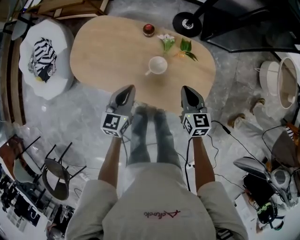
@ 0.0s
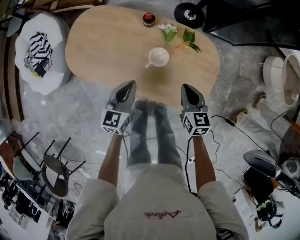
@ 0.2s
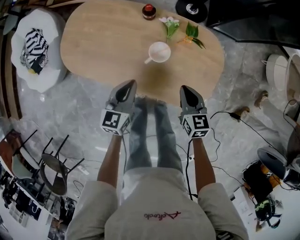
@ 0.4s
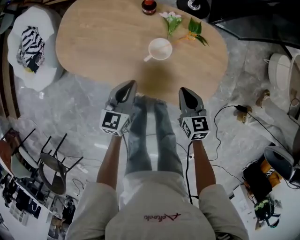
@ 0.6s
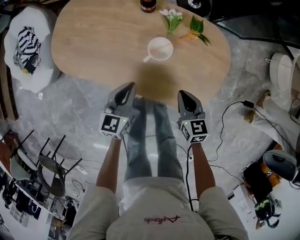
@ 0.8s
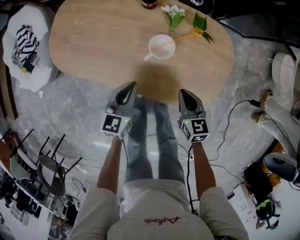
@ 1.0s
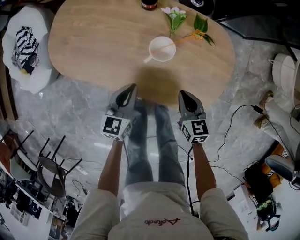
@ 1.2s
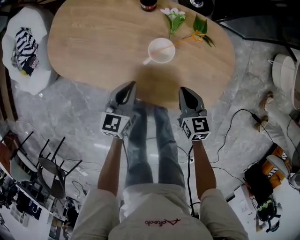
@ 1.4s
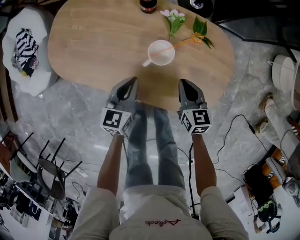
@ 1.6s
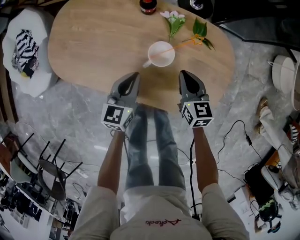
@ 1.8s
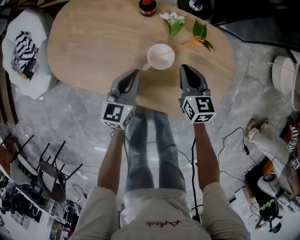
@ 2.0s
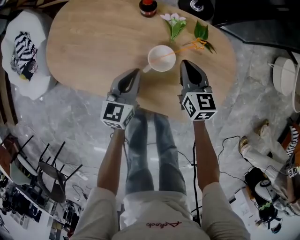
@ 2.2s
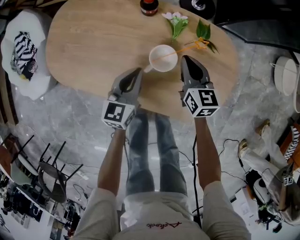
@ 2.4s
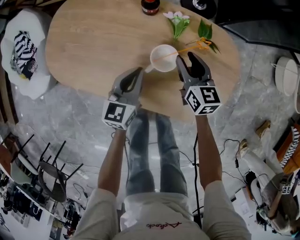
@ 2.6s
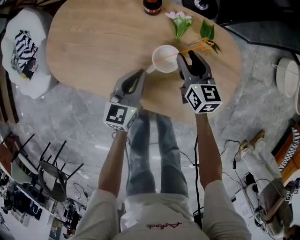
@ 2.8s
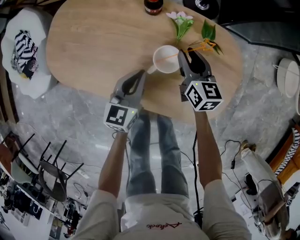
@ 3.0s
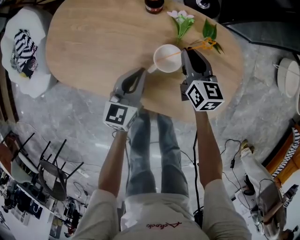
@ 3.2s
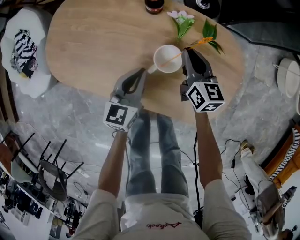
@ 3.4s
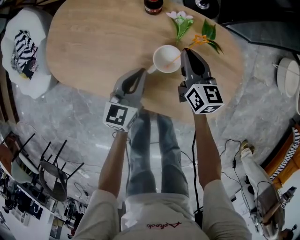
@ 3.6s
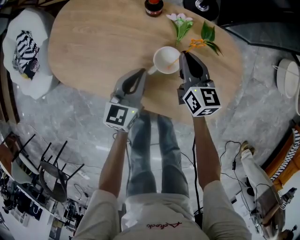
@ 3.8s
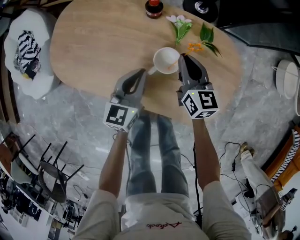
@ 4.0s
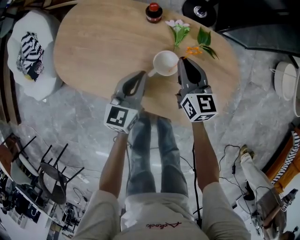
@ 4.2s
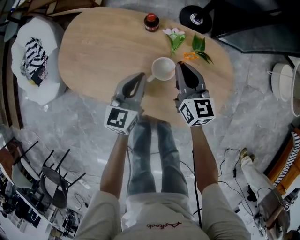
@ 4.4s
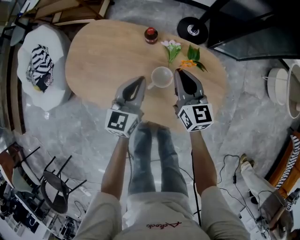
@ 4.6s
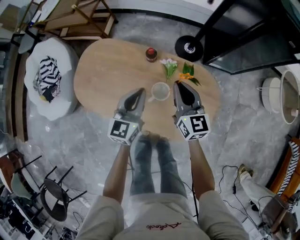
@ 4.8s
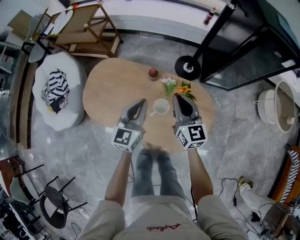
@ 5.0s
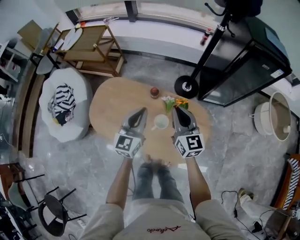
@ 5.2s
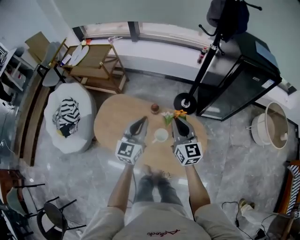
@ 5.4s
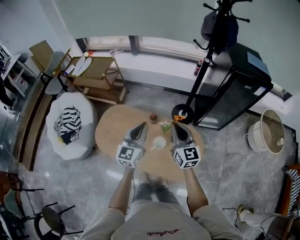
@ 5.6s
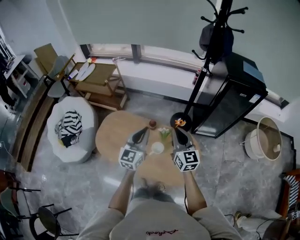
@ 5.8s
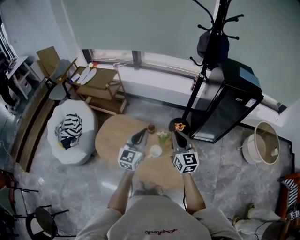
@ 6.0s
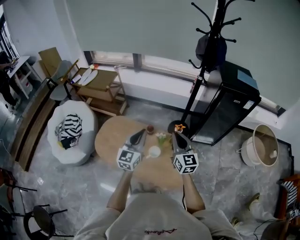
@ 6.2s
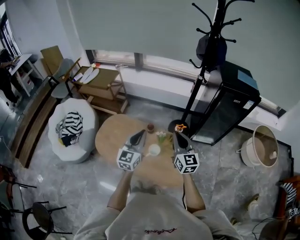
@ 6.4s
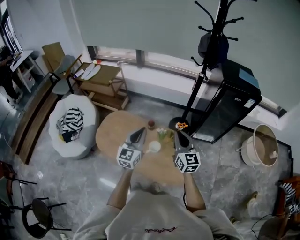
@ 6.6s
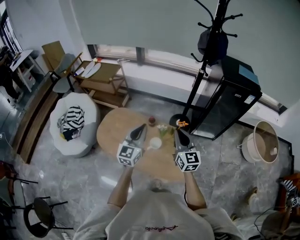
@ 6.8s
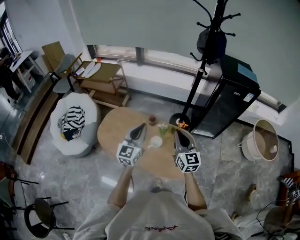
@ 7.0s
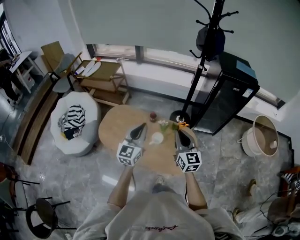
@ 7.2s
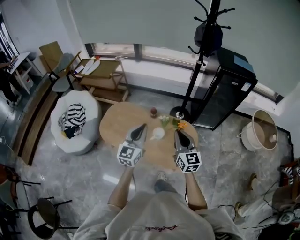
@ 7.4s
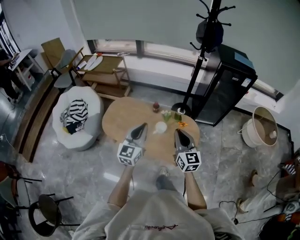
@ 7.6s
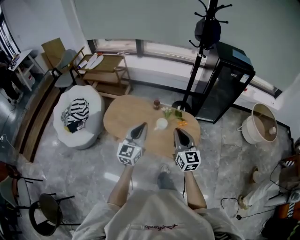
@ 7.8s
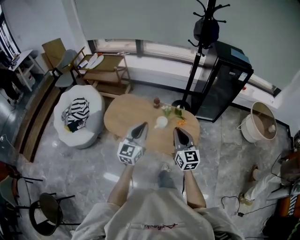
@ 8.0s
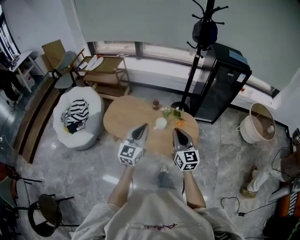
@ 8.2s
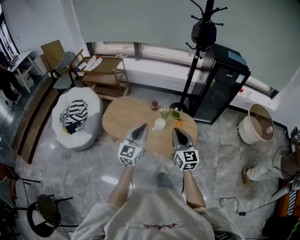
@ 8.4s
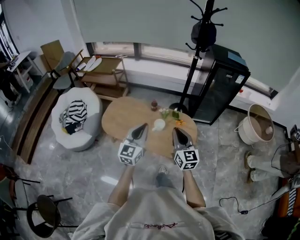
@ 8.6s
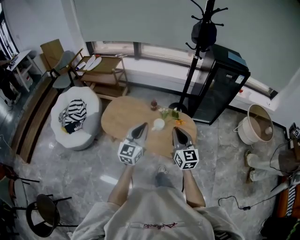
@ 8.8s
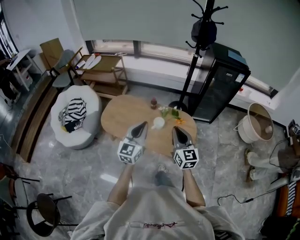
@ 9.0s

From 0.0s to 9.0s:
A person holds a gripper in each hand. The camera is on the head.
From 0.0s to 1.6s: The grippers both shift downward by about 20 cm.
From 1.6s to 3.0s: The right gripper moves forward, roughly 15 cm, and opens up; the left gripper goes approximately 5 cm forward.
From 3.0s to 4.4s: Both grippers move upward, about 10 cm. The right gripper closes.
From 4.4s to 6.0s: Both grippers move upward, roughly 40 cm. The right gripper turns by about 20 degrees, while the left gripper changes its angle by approximately 20 degrees.
From 6.0s to 7.6s: Both grippers travel together backward, roughly 20 cm.
From 7.6s to 9.0s: The two grippers go some 5 cm backward.

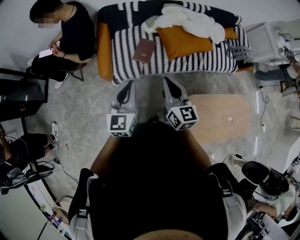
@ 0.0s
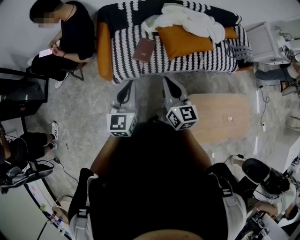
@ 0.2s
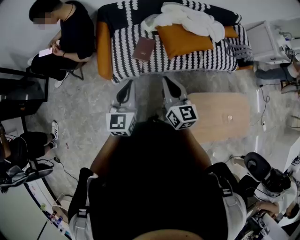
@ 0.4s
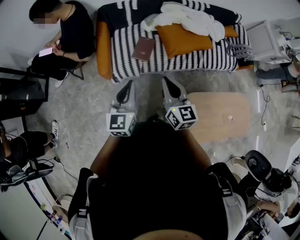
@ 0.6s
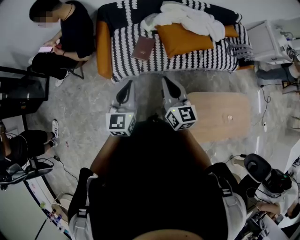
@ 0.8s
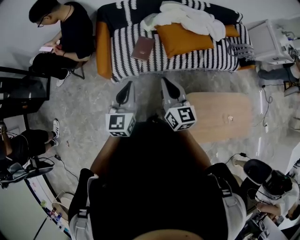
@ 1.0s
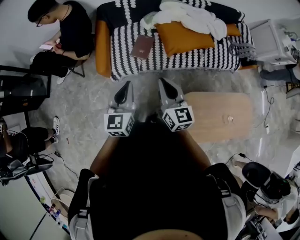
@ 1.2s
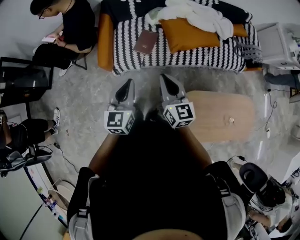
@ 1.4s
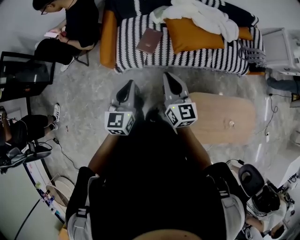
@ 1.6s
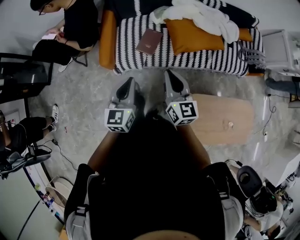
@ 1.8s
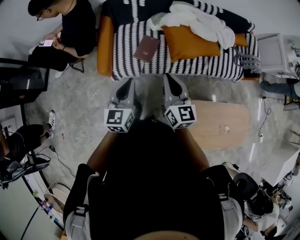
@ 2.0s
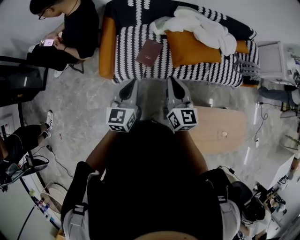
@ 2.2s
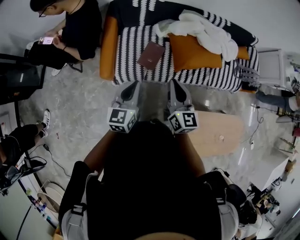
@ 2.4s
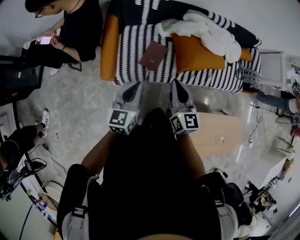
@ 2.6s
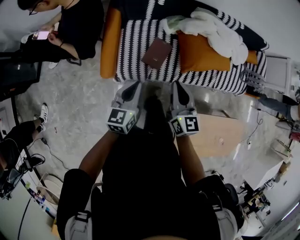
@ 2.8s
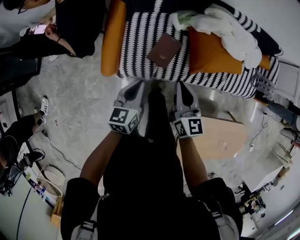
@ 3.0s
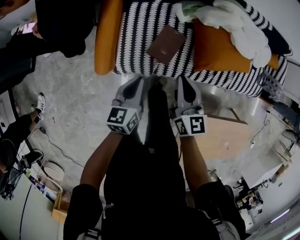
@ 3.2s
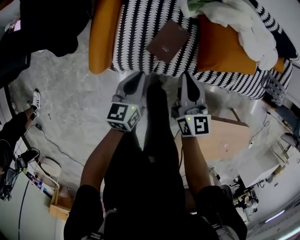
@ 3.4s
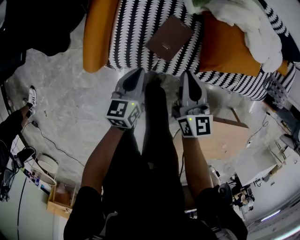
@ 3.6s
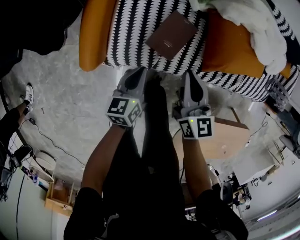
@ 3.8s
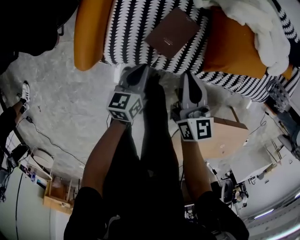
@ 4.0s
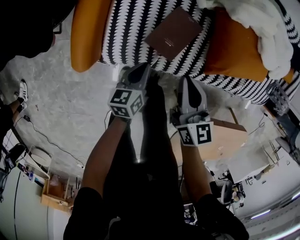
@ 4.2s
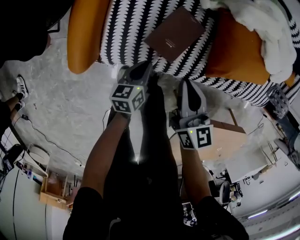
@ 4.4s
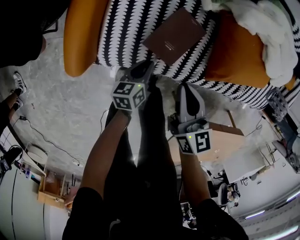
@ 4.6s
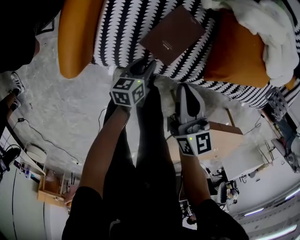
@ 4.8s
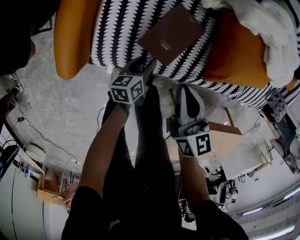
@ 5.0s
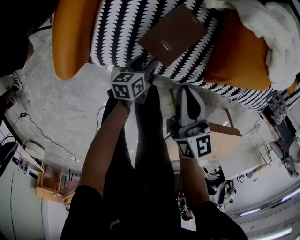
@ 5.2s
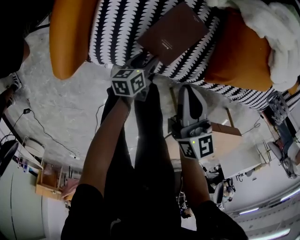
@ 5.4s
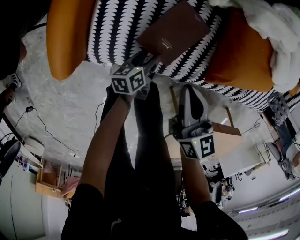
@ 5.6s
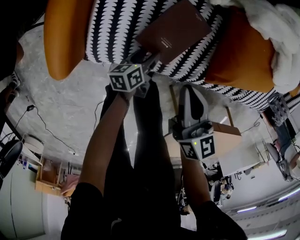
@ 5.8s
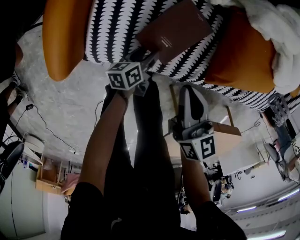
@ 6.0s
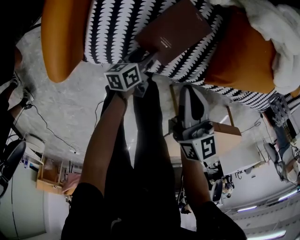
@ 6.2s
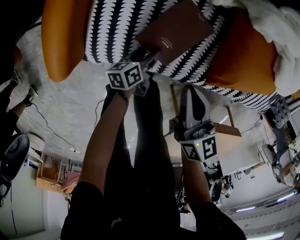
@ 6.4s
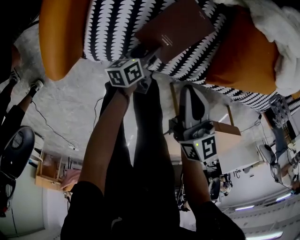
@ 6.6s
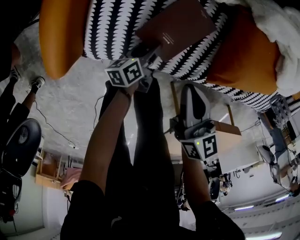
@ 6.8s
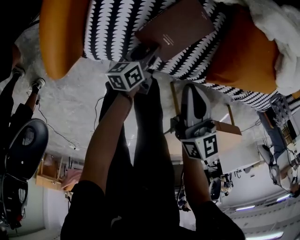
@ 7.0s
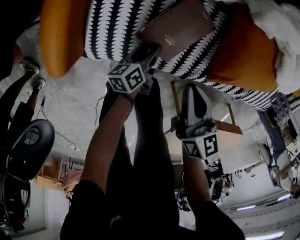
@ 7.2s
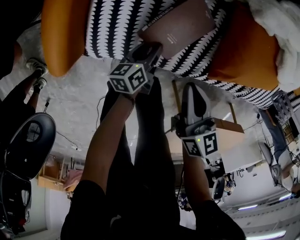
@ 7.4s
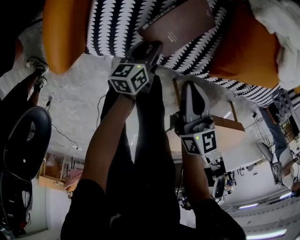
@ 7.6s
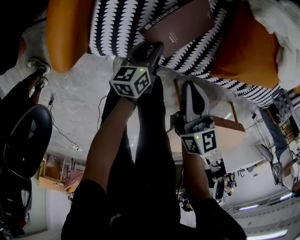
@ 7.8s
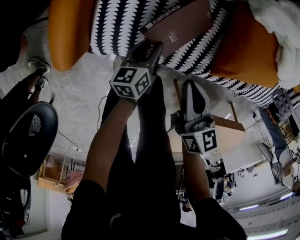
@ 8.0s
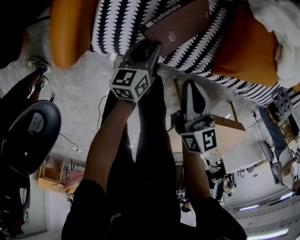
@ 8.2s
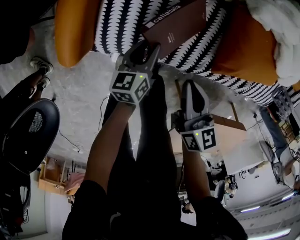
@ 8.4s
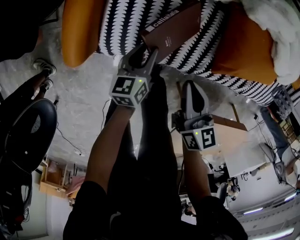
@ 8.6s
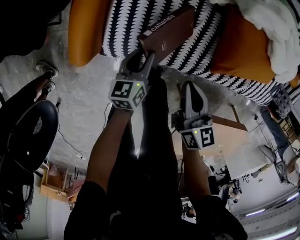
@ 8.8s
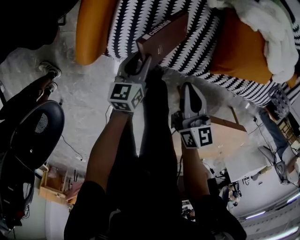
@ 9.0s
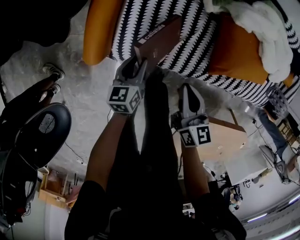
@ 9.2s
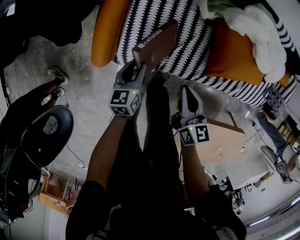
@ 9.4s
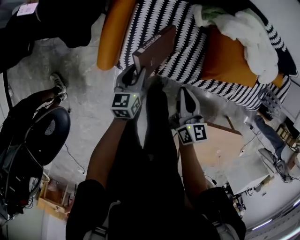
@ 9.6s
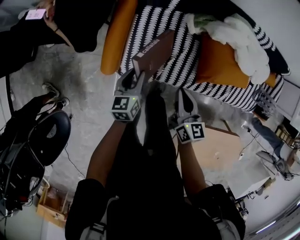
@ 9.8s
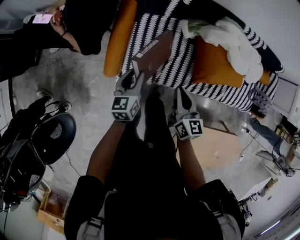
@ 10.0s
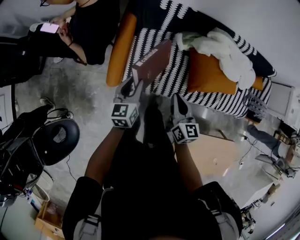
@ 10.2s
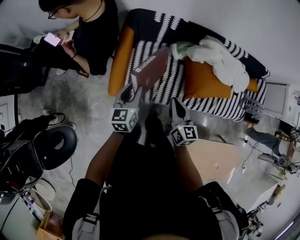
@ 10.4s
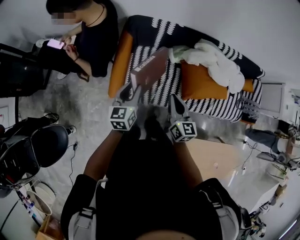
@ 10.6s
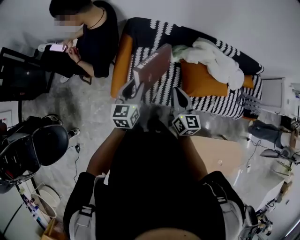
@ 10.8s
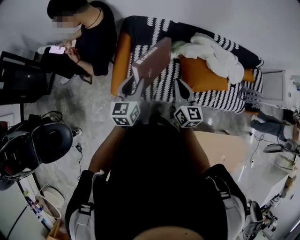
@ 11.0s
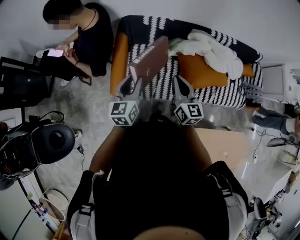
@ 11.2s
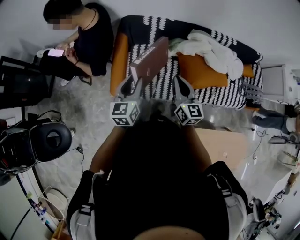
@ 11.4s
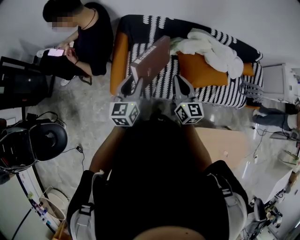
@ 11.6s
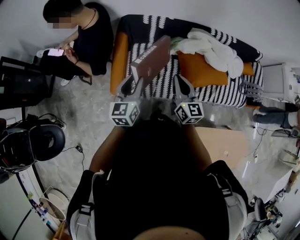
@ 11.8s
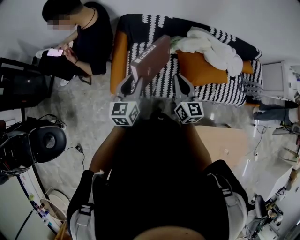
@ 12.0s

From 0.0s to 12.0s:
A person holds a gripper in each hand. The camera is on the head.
From 0.0s to 1.6s: Both grippers travel together to the right, some 5 cm.
From 1.6s to 3.0s: The two grippers go roughly 30 cm forward and downward. The left gripper rotates about 20 degrees.
From 3.0s to 4.4s: Both grippers move downward, some 30 cm. The left gripper swivels roughly 20 degrees.
From 4.4s to 6.0s: The left gripper travels downward by roughly 15 cm, swivels approximately 20 degrees, and opens its fingers. Meanwhile the right gripper heads downward, covering roughly 5 cm.
From 6.0s to 7.6s: There are only small adjustments of the grippers.
From 7.6s to 9.0s: The right gripper heads upward, covering approximately 5 cm. Meanwhile the left gripper heads upward and to the left, covering roughly 15 cm.
From 9.0s to 10.4s: Both grippers move upward, approximately 35 cm.
From 10.4s to 12.0s: Both grippers move upward, roughly 10 cm.

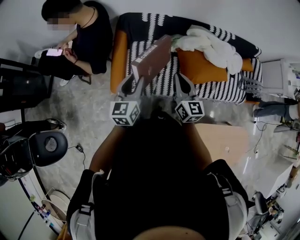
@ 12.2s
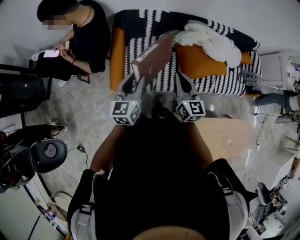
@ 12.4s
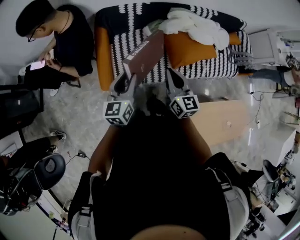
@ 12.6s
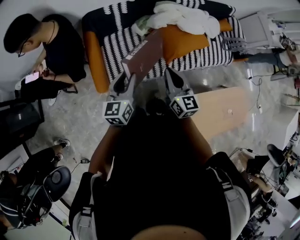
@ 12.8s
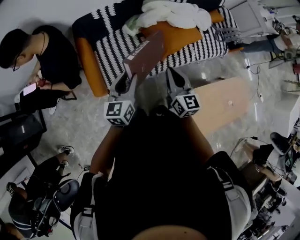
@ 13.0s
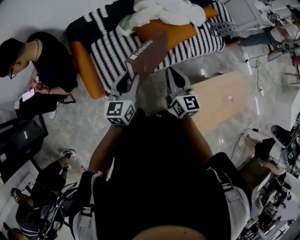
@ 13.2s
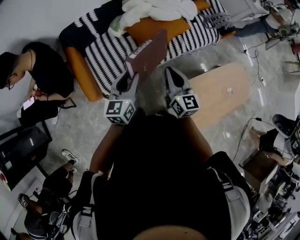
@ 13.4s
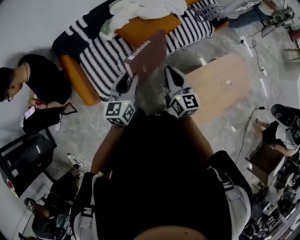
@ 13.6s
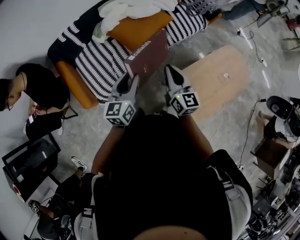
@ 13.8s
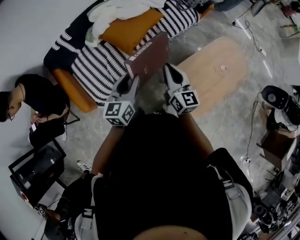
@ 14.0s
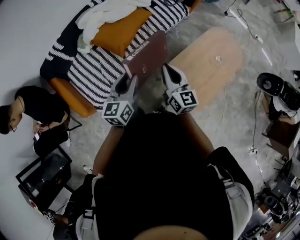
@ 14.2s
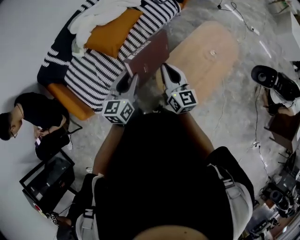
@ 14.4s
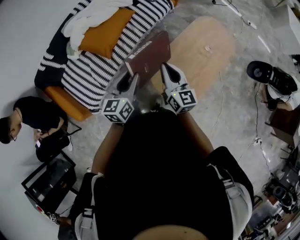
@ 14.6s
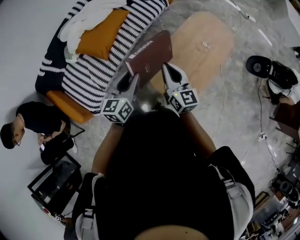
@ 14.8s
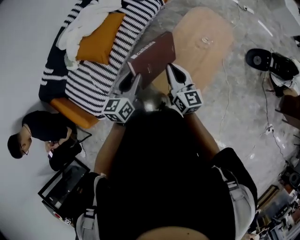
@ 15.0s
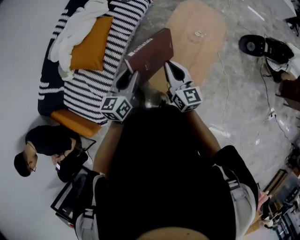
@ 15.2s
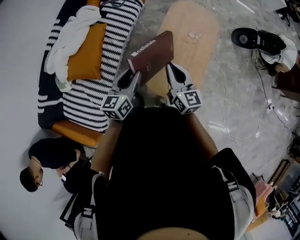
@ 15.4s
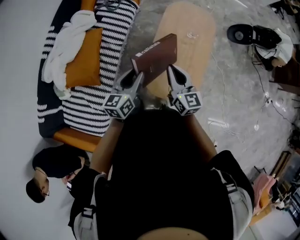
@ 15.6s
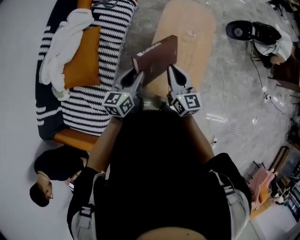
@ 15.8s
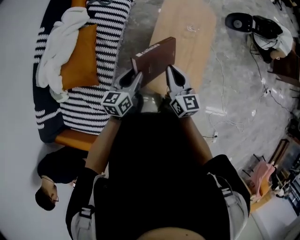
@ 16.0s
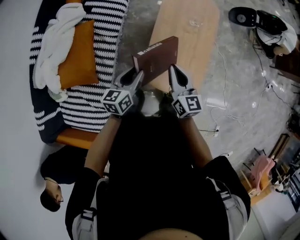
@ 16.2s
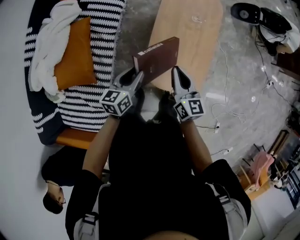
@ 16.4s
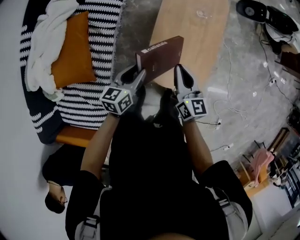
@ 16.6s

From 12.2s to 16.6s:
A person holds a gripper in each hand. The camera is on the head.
From 12.2s to 13.6s: The right gripper shifts by some 30 cm, and rotates some 30 degrees. Meanwhile the left gripper shifts by some 25 cm, and changes its angle by some 30 degrees.
From 13.6s to 15.2s: The left gripper moves approximately 35 cm, and changes its angle by roughly 40 degrees. The right gripper ends up approximately 35 cm from where it was, and rotates approximately 30 degrees.
From 15.2s to 16.6s: Both grippers travel together downward, about 15 cm. The right gripper rotates roughly 30 degrees; the left gripper changes its angle by approximately 30 degrees.
